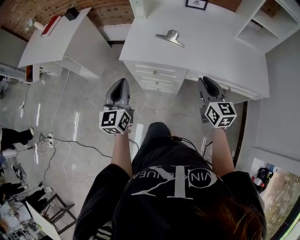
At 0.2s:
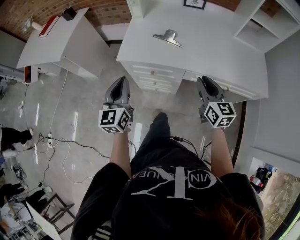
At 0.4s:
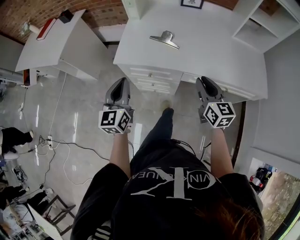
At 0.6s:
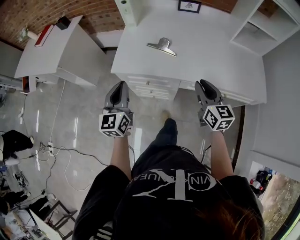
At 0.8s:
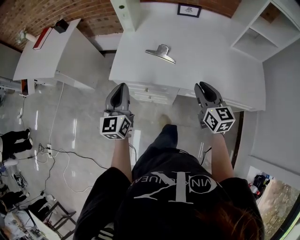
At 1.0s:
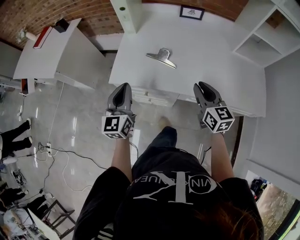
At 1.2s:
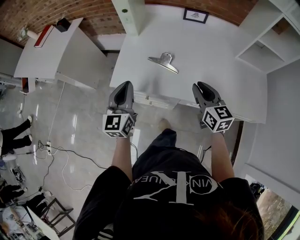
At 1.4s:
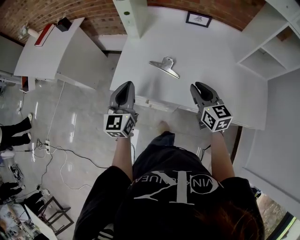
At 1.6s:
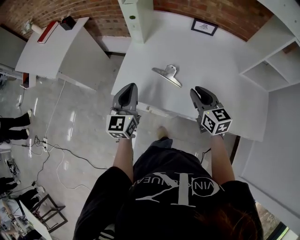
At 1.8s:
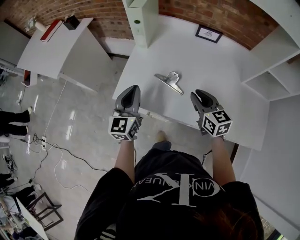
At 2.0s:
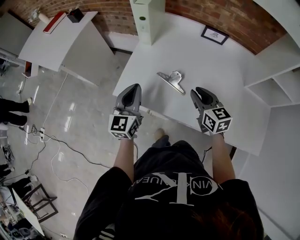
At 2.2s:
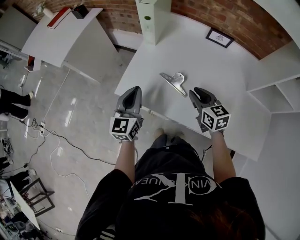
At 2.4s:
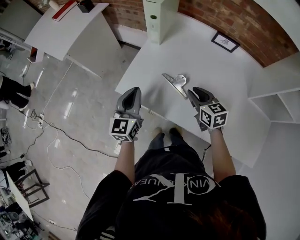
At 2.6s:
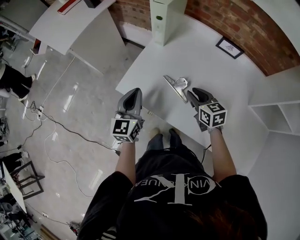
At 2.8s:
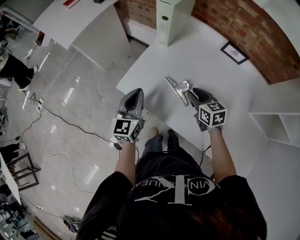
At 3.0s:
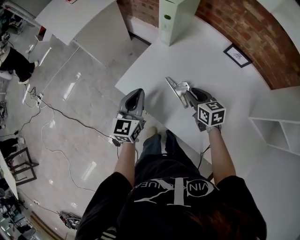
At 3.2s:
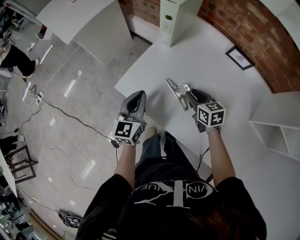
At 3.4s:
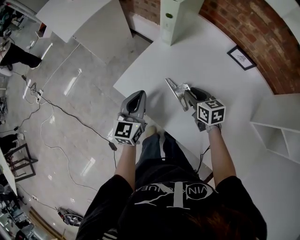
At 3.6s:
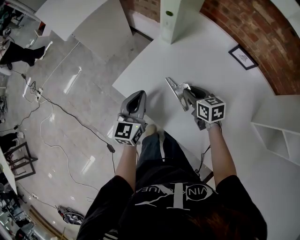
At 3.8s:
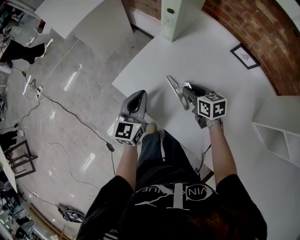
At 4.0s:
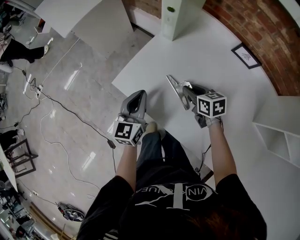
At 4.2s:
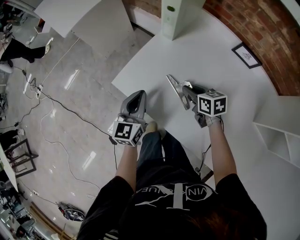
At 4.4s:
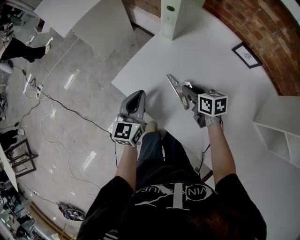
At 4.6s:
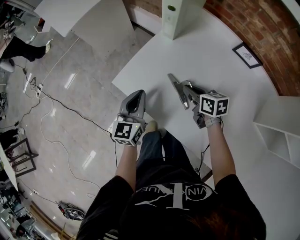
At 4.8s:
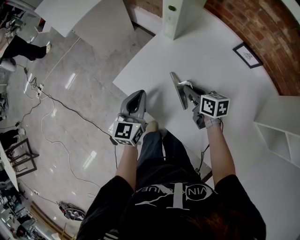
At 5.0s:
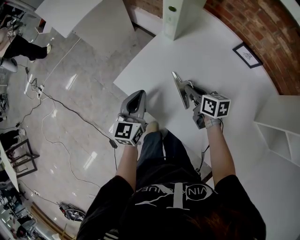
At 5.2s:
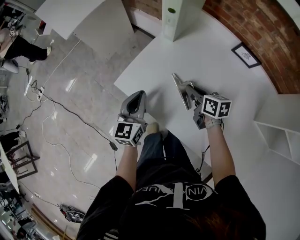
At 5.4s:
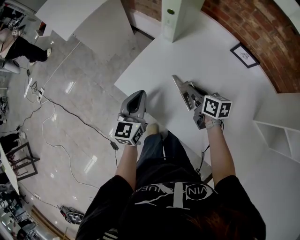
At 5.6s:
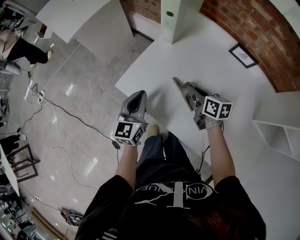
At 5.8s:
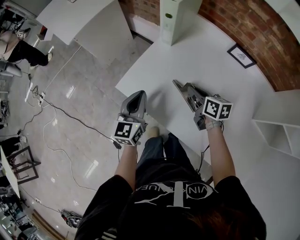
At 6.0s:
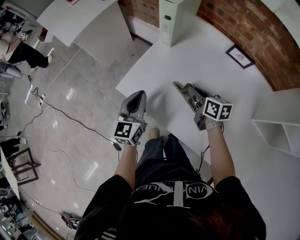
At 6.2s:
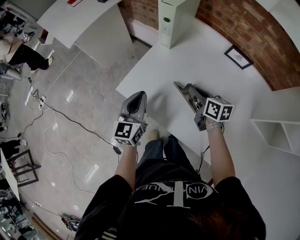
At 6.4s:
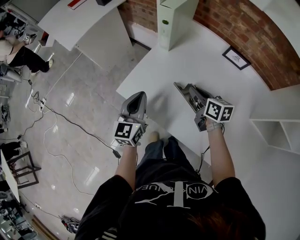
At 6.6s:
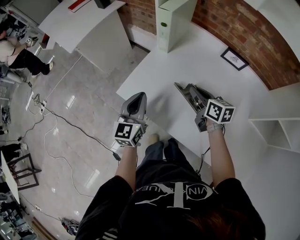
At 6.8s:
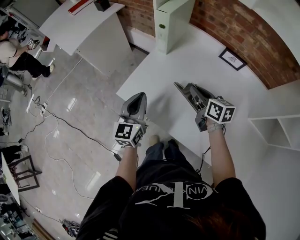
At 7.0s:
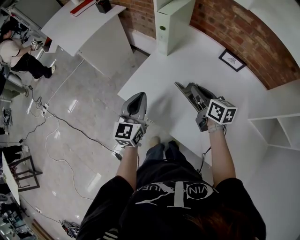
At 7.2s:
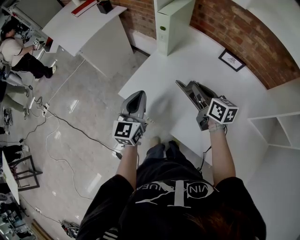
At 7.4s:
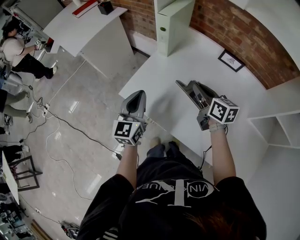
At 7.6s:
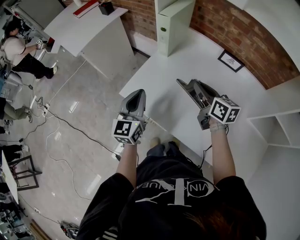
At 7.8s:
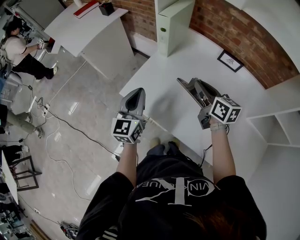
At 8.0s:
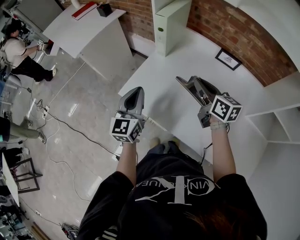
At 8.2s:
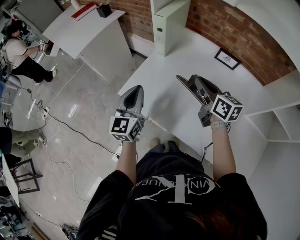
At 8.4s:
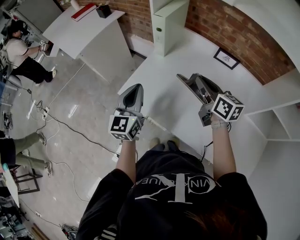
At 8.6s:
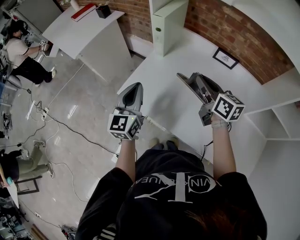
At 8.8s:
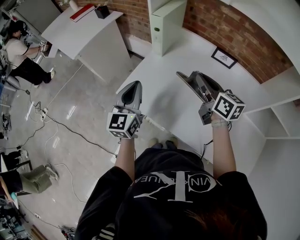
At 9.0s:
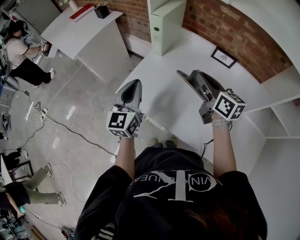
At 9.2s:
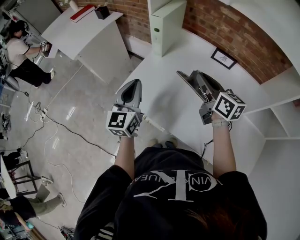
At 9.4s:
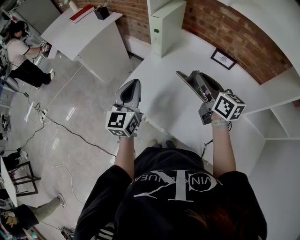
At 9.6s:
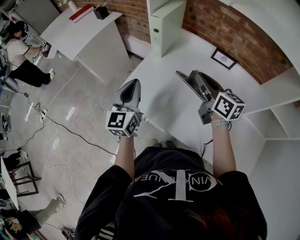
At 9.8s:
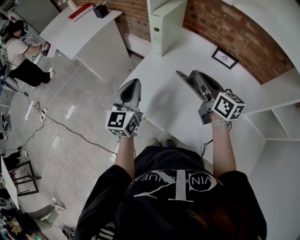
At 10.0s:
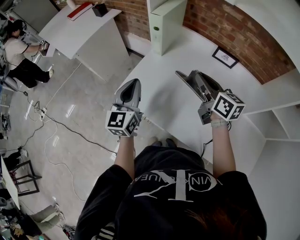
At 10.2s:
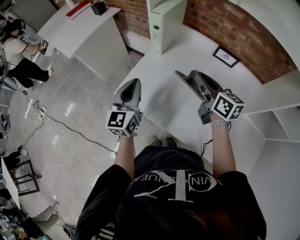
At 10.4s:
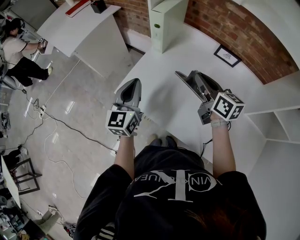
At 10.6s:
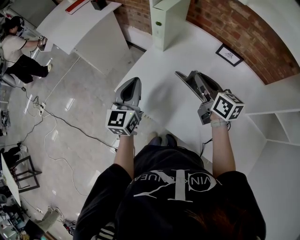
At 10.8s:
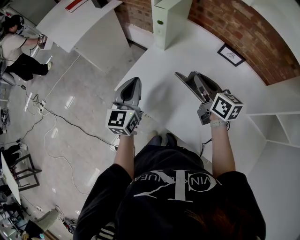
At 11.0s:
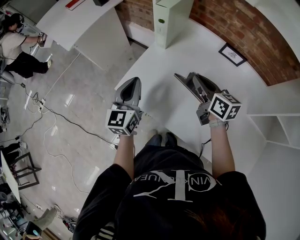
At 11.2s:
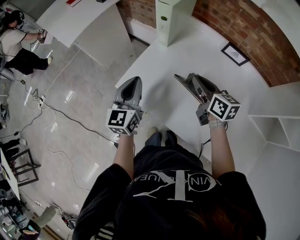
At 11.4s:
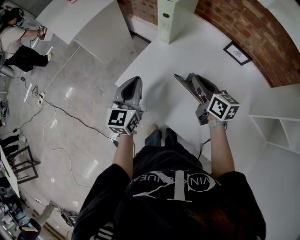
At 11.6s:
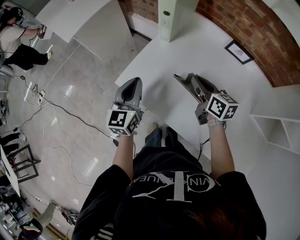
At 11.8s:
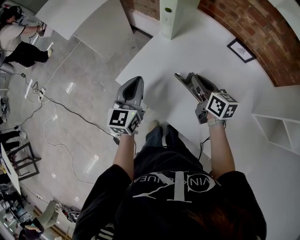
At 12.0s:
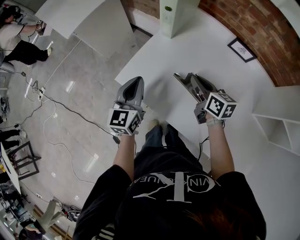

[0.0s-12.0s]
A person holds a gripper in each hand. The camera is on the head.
0.0s to 1.6s: The left gripper moves forward and to the right, roughly 20 cm; the right gripper moves forward, approximately 20 cm.
1.6s to 3.0s: The right gripper travels forward and downward by about 15 cm, and turns by about 30 degrees, while the left gripper goes roughly 5 cm downward.
3.0s to 4.4s: The right gripper ends up roughly 5 cm from where it was.
4.4s to 6.0s: The right gripper heads upward, covering approximately 5 cm.
6.0s to 7.6s: The left gripper shifts roughly 5 cm upward. Meanwhile the right gripper shifts about 10 cm upward.
7.6s to 9.0s: The right gripper goes roughly 5 cm upward.
9.0s to 10.4s: The grippers make only small movements.
10.4s to 12.0s: The left gripper heads downward, covering about 5 cm. The right gripper goes some 10 cm downward.

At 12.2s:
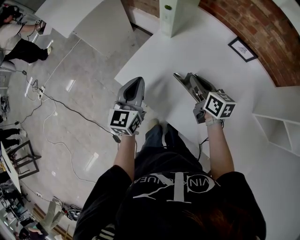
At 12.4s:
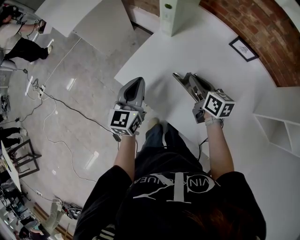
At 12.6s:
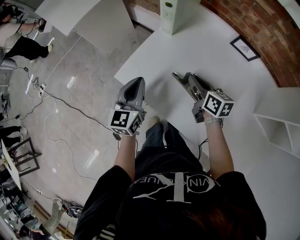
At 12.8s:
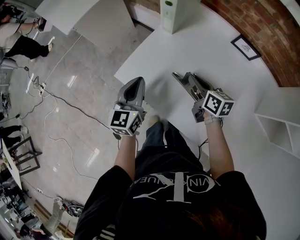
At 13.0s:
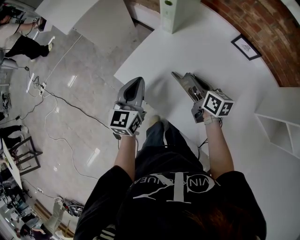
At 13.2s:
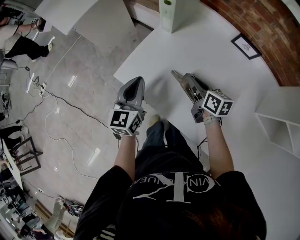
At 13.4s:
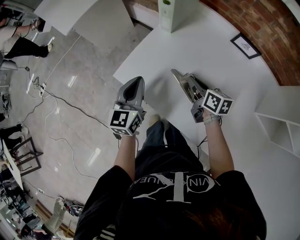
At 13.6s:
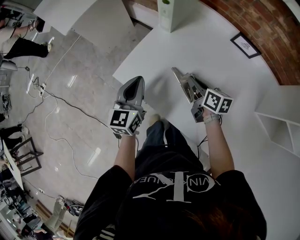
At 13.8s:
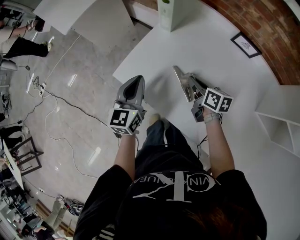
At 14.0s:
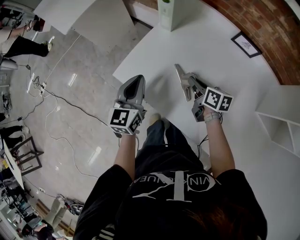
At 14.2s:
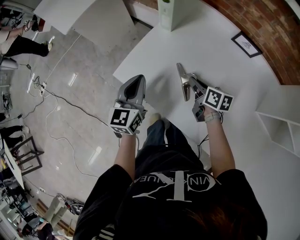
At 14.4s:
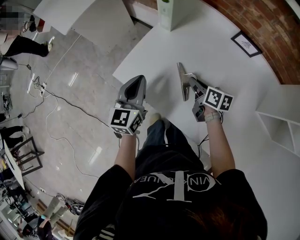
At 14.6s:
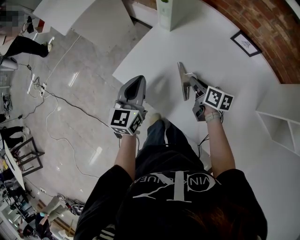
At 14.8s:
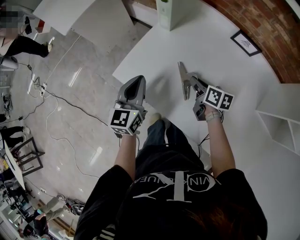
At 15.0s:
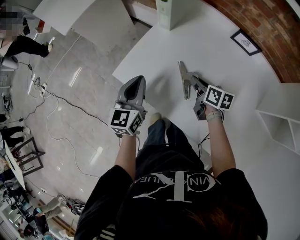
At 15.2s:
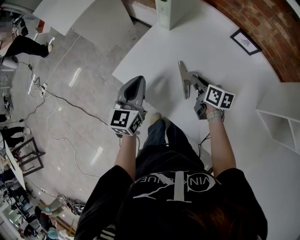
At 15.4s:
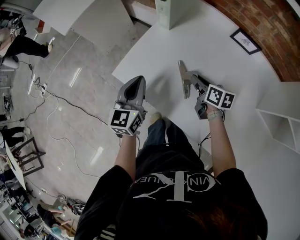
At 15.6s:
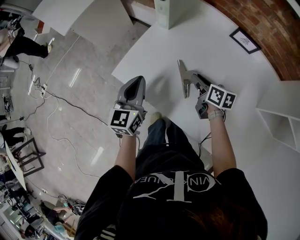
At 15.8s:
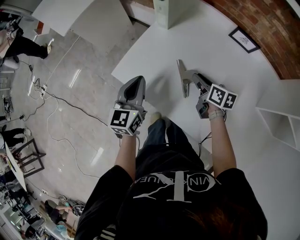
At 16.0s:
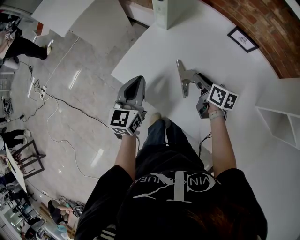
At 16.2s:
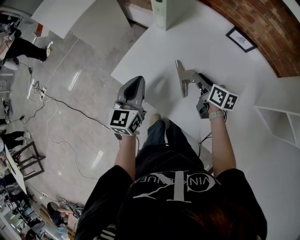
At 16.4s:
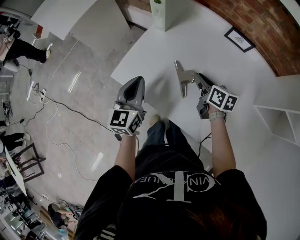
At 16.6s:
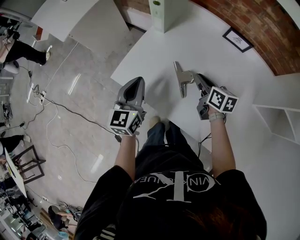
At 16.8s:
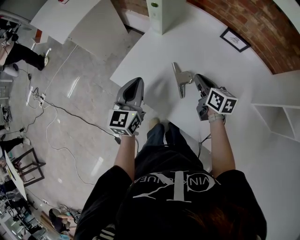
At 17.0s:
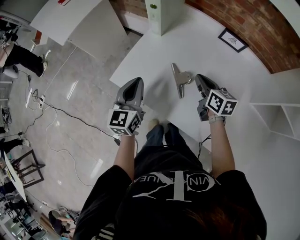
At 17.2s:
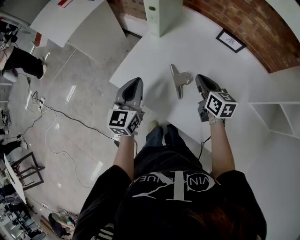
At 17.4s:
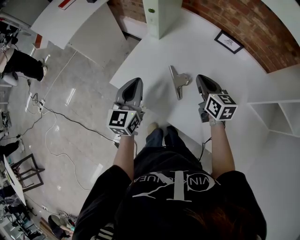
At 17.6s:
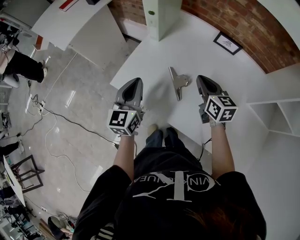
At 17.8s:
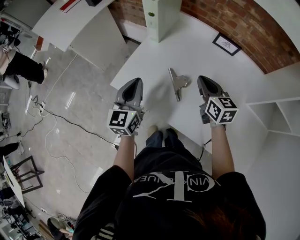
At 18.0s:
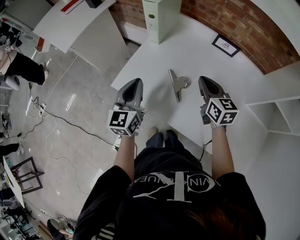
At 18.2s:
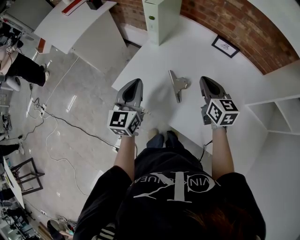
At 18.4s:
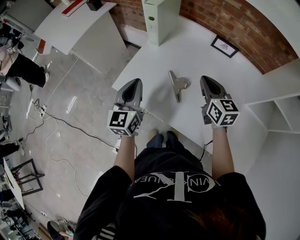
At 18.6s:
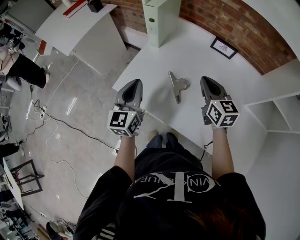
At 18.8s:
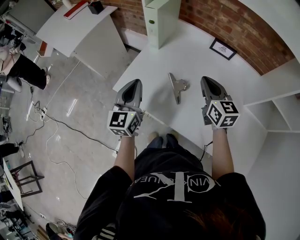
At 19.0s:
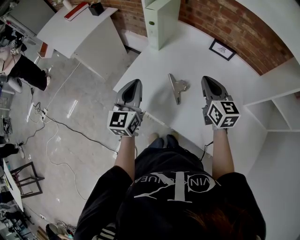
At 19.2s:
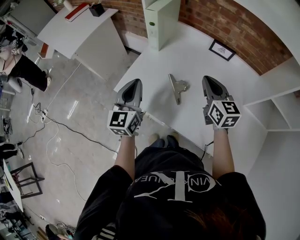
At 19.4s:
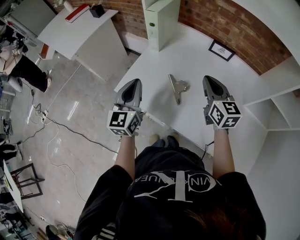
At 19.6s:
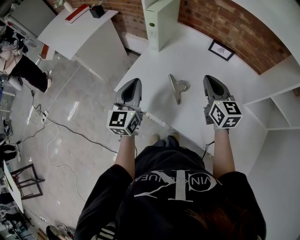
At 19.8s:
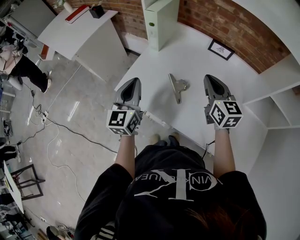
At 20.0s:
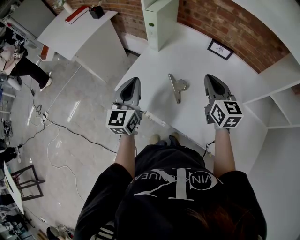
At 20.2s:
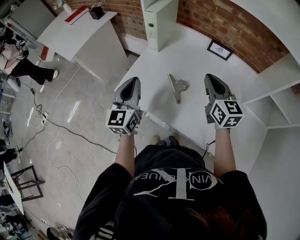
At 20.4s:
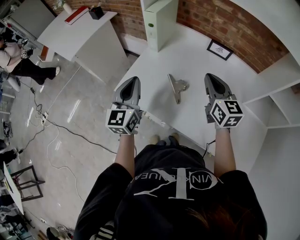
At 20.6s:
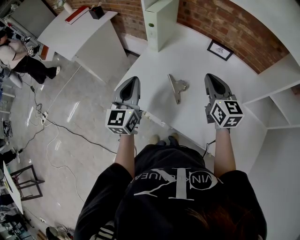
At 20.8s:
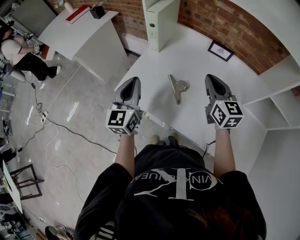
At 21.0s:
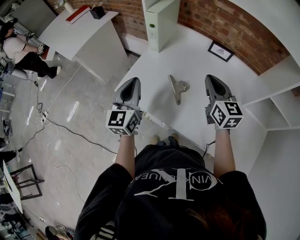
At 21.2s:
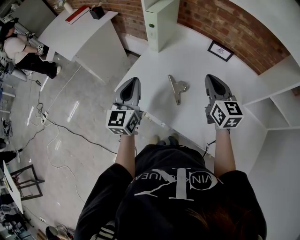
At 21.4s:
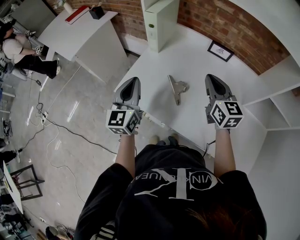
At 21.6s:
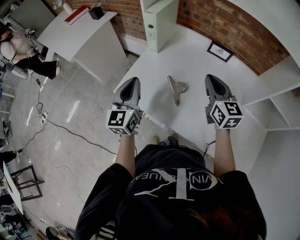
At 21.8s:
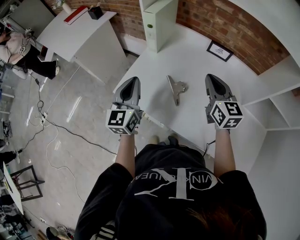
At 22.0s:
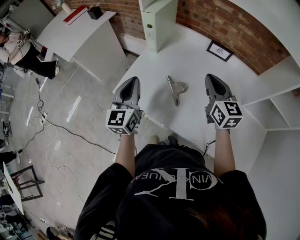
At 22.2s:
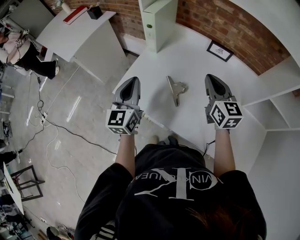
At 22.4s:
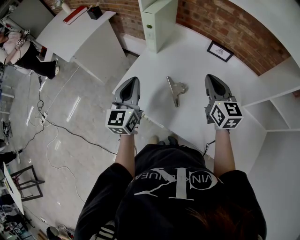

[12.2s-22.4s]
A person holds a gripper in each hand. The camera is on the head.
12.2s to 13.6s: The right gripper moves downward, approximately 5 cm.
13.6s to 15.2s: The grippers stay close to where they were, moving slightly.
15.2s to 16.6s: The right gripper changes place by approximately 5 cm.
16.6s to 18.0s: The right gripper travels upward by approximately 10 cm, and turns by some 30 degrees.
18.0s to 19.4s: The right gripper is displaced upward by some 5 cm.
19.4s to 22.4s: The grippers make only small movements.

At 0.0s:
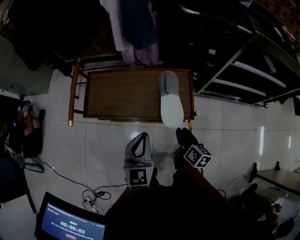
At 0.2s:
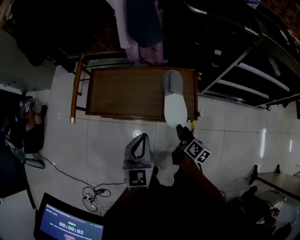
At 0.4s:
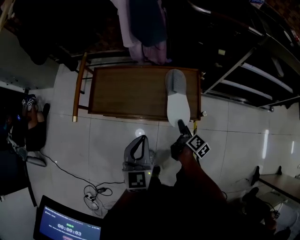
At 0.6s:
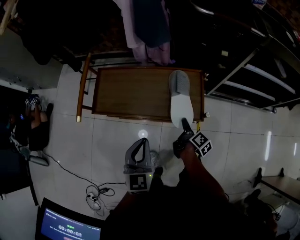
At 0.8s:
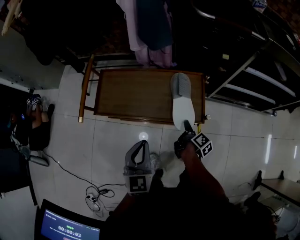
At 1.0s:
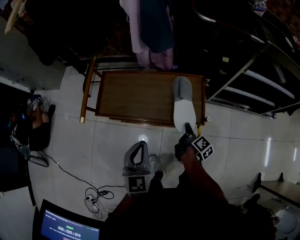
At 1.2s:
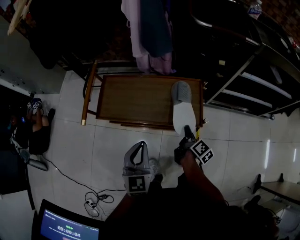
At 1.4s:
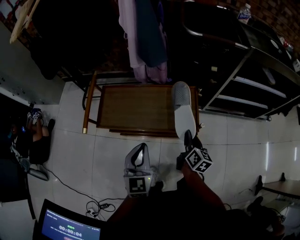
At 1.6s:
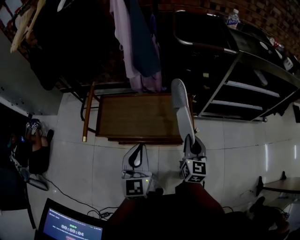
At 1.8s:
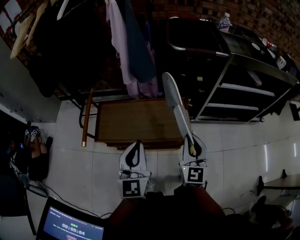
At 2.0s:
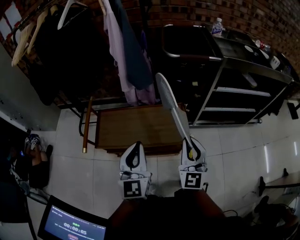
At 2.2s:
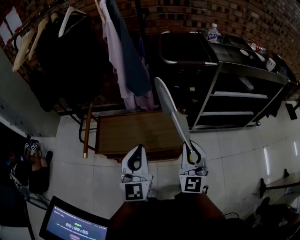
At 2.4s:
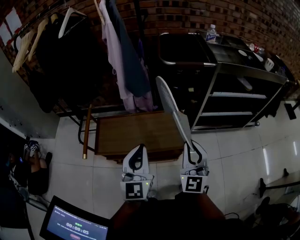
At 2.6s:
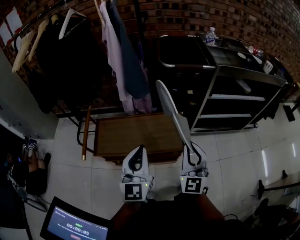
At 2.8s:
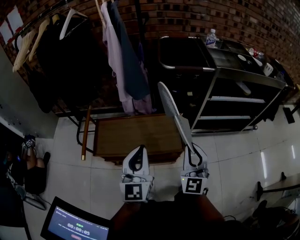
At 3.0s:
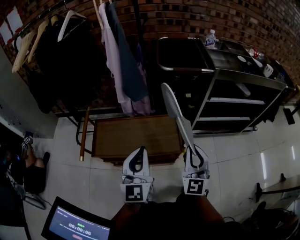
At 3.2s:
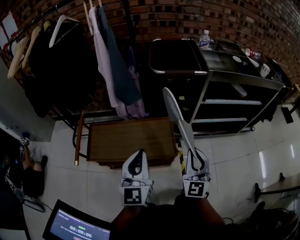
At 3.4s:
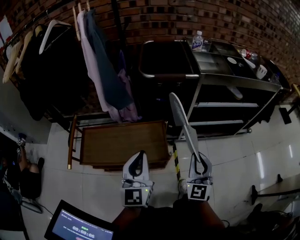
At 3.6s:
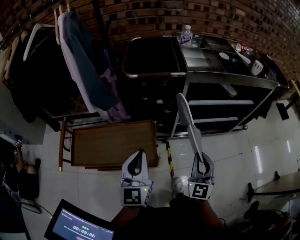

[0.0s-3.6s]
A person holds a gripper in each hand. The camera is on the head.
0.0s to 1.8s: The left gripper shifts about 15 cm upward. Meanwhile the right gripper travels upward by about 25 cm, twists some 50 degrees counterclockwise, seen from behind, and closes up.
1.8s to 3.6s: The left gripper travels to the right and forward by about 20 cm. The right gripper goes some 25 cm to the right.
